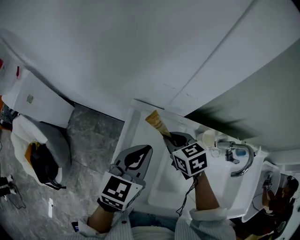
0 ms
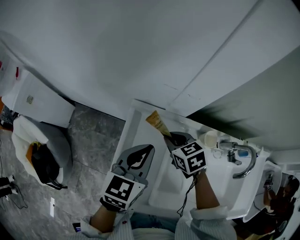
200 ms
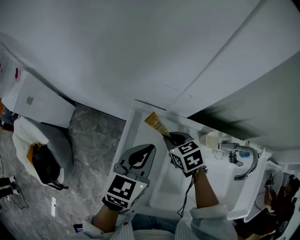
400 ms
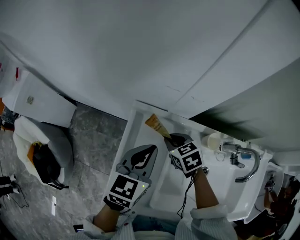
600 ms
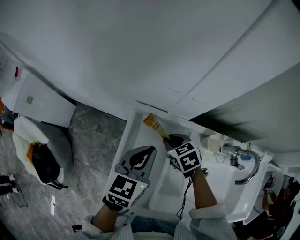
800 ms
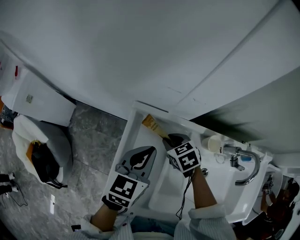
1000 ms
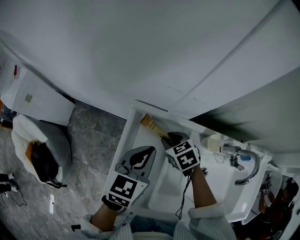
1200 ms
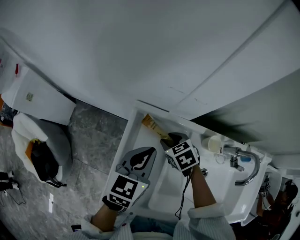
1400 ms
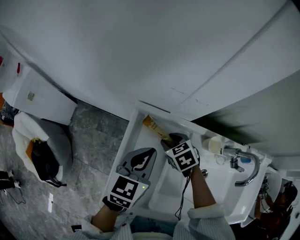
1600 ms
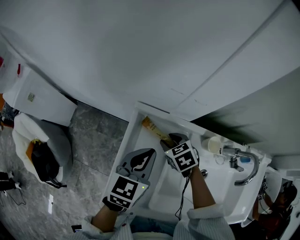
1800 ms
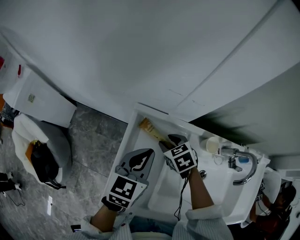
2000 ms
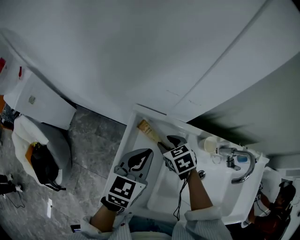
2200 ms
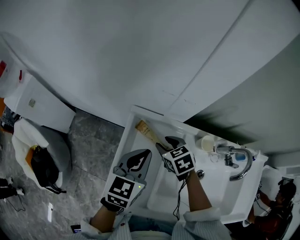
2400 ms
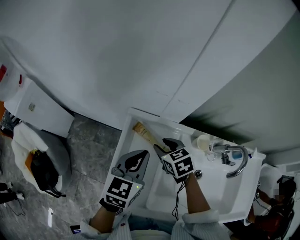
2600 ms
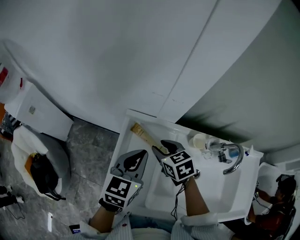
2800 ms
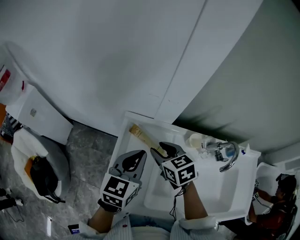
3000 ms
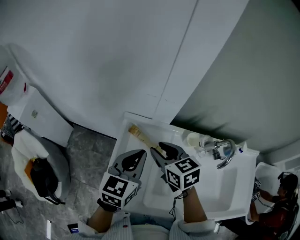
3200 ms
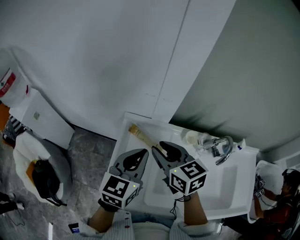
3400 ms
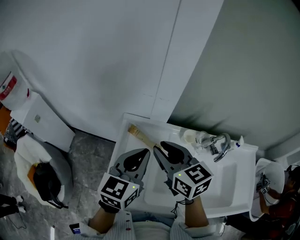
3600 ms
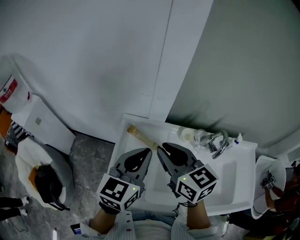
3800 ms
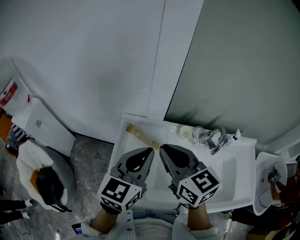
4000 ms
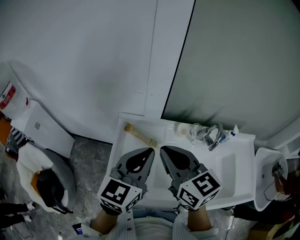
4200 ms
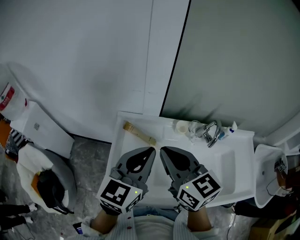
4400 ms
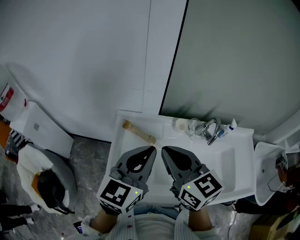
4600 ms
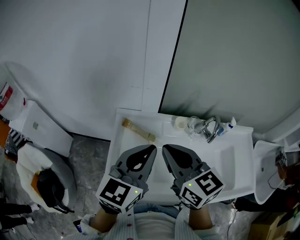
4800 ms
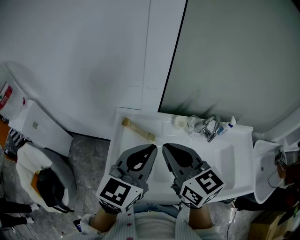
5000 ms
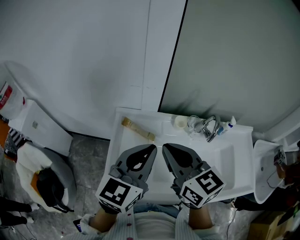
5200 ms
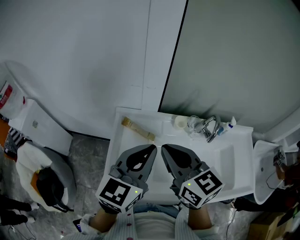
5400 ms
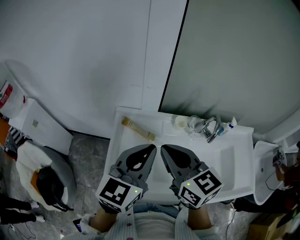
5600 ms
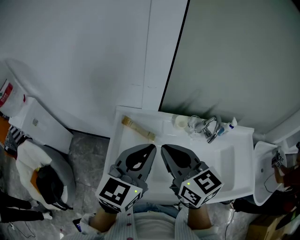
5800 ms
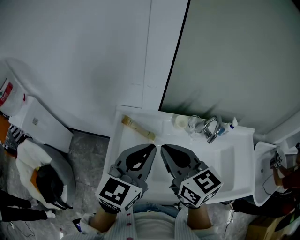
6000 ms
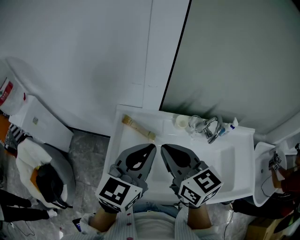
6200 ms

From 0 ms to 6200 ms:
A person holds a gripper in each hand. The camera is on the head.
From 0 ms to 1600 ms: The left gripper shifts by roughly 5 cm, while the right gripper travels downward by approximately 10 cm, and opens its fingers.
From 1600 ms to 3200 ms: The right gripper travels upward by some 20 cm, and rotates about 30 degrees. Meanwhile the left gripper is displaced upward by some 10 cm.
From 3200 ms to 4600 ms: The right gripper moves upward and backward, some 20 cm, changes its angle by approximately 20 degrees, and closes up; the left gripper travels upward, backward and to the right by approximately 15 cm.
From 4600 ms to 6200 ms: The grippers stay close to where they were, moving slightly.

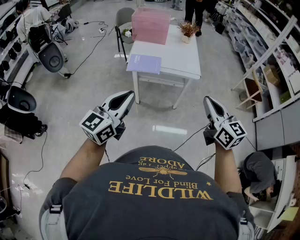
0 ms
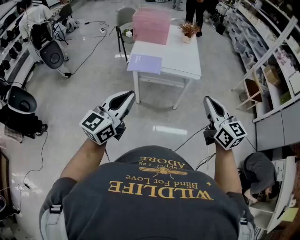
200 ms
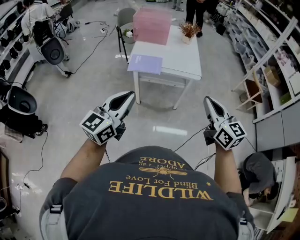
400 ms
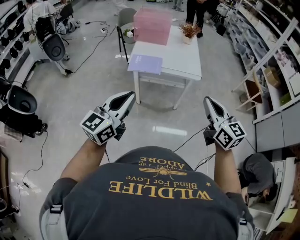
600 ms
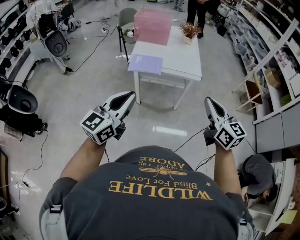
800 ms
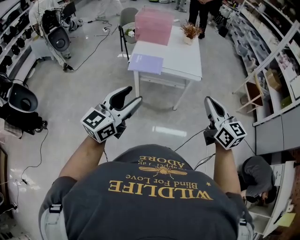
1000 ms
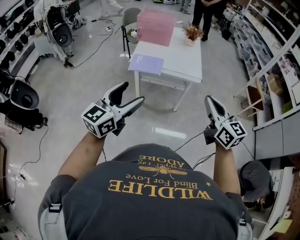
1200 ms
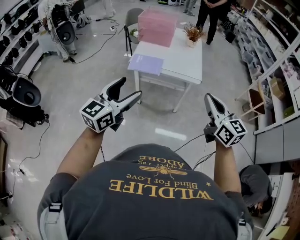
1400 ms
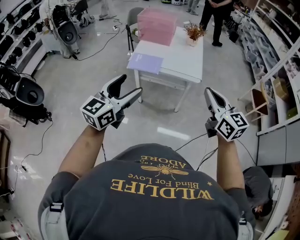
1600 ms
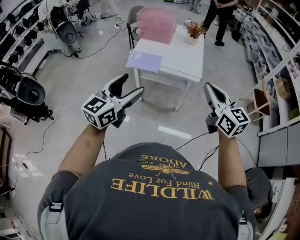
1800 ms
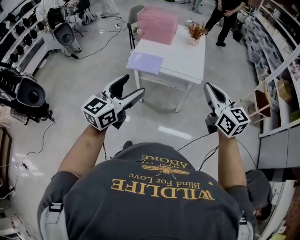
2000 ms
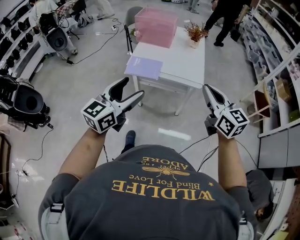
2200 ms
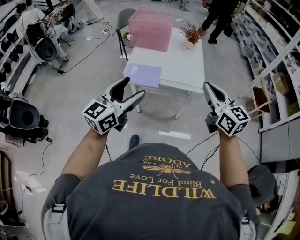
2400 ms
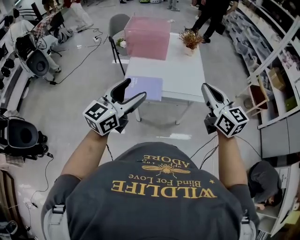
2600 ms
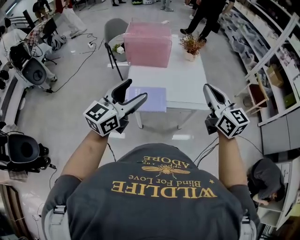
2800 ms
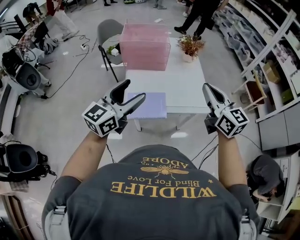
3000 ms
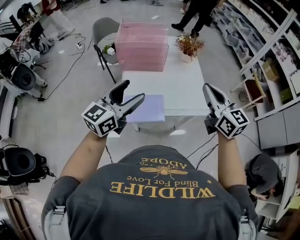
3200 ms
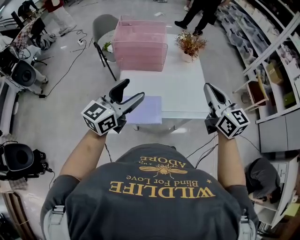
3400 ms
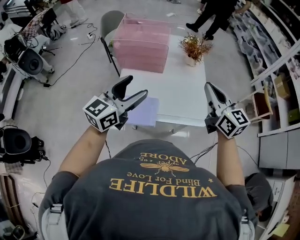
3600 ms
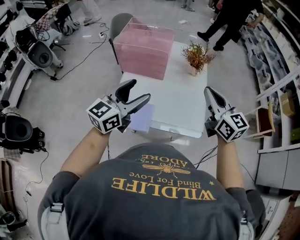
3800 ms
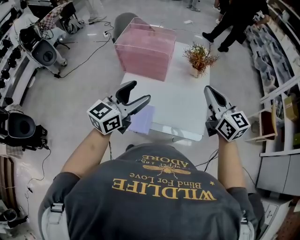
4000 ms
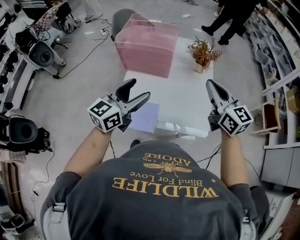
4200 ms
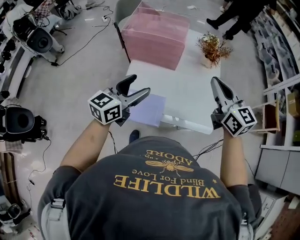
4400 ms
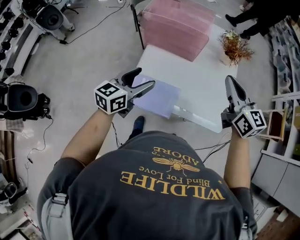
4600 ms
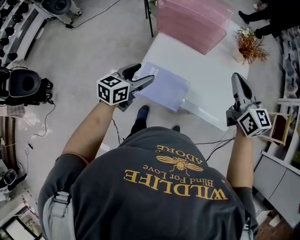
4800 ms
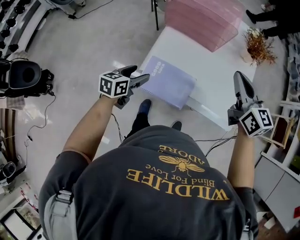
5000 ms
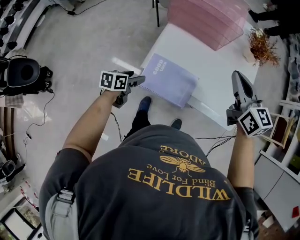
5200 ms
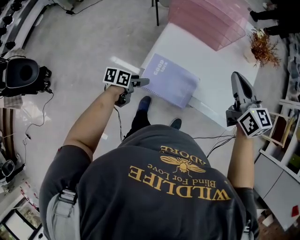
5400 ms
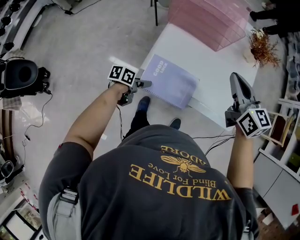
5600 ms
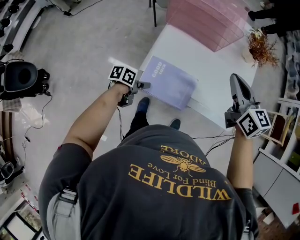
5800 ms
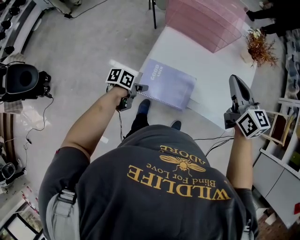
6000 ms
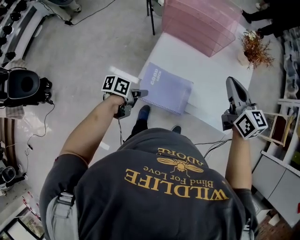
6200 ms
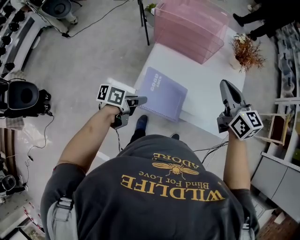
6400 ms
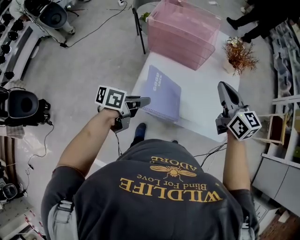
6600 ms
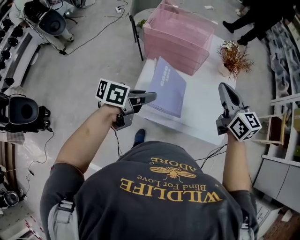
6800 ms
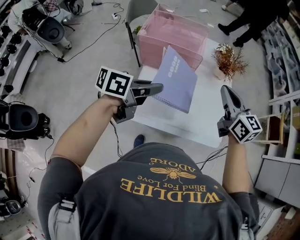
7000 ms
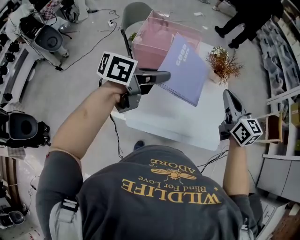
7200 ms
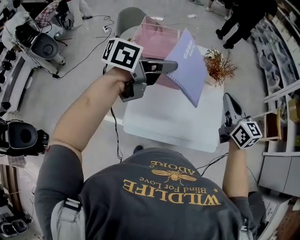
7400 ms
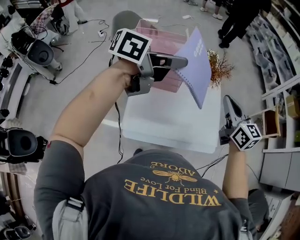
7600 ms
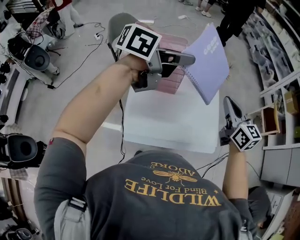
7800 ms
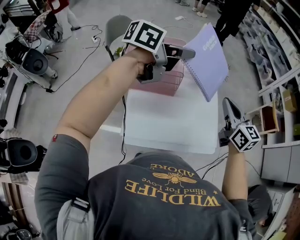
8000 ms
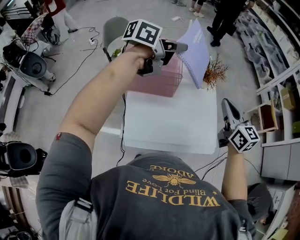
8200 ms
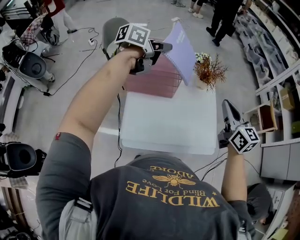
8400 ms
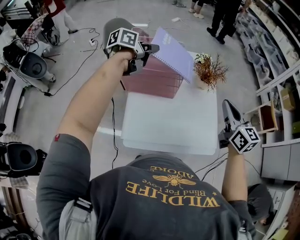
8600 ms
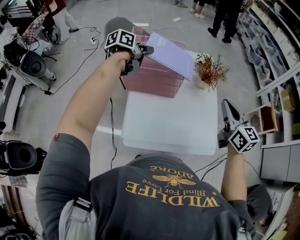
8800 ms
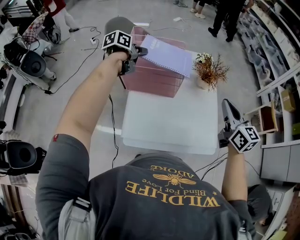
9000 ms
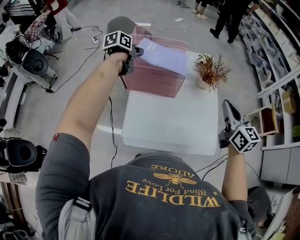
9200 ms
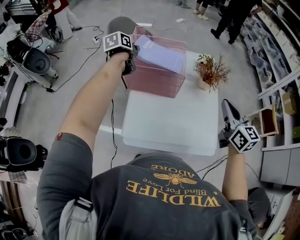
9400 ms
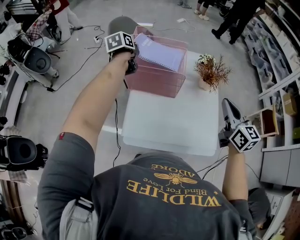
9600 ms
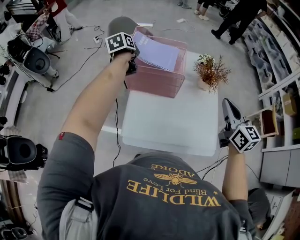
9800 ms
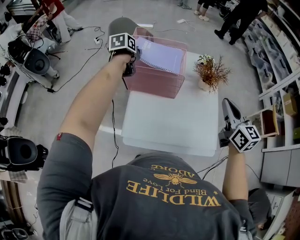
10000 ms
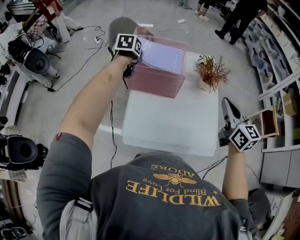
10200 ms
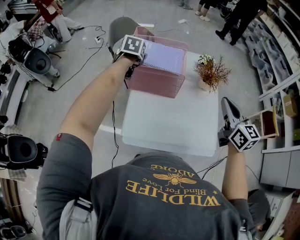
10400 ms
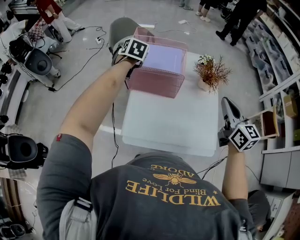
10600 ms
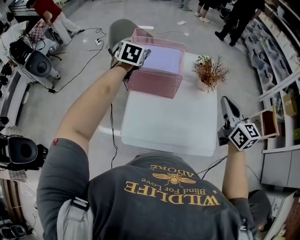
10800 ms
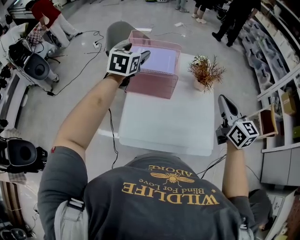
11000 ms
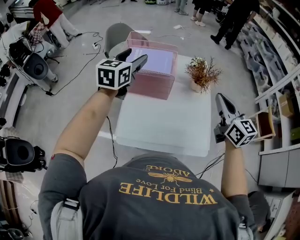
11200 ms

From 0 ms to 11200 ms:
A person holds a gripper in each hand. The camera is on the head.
From 0 ms to 1600 ms: Both grippers travel together to the right, roughly 5 cm. The left gripper opens.
From 1600 ms to 3200 ms: The pair of grippers is taken forward, some 40 cm. The left gripper rotates about 20 degrees.
From 3200 ms to 4800 ms: The right gripper travels forward and downward by about 20 cm, and rotates approximately 20 degrees. The left gripper travels downward and forward by some 25 cm, and swivels roughly 30 degrees.
From 4800 ms to 6400 ms: The left gripper goes downward and returns, some 20 cm each way, rotates approximately 40 degrees, and closes its fingers.
From 6400 ms to 8000 ms: The right gripper travels to the right, forward and upward by some 15 cm, and rotates approximately 20 degrees. The left gripper shifts about 50 cm upward and forward, and changes its angle by some 50 degrees.
From 8000 ms to 9600 ms: The left gripper changes place by about 35 cm, and swivels some 60 degrees.
From 9600 ms to 11200 ms: The left gripper moves backward, upward and to the right, about 20 cm, turns by some 40 degrees, and opens.

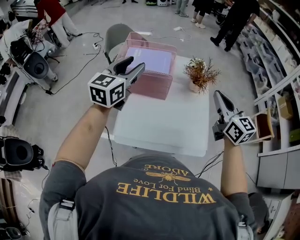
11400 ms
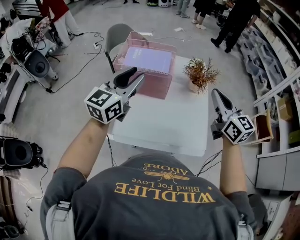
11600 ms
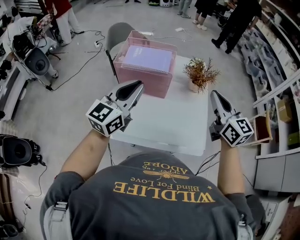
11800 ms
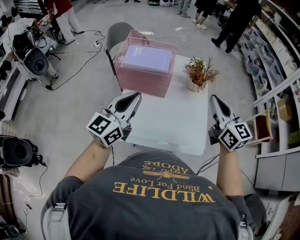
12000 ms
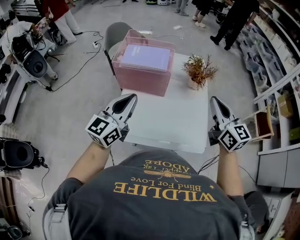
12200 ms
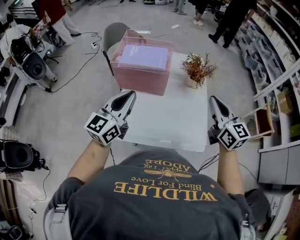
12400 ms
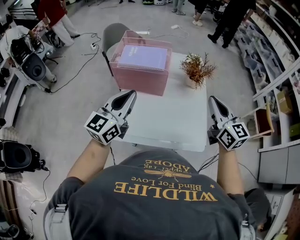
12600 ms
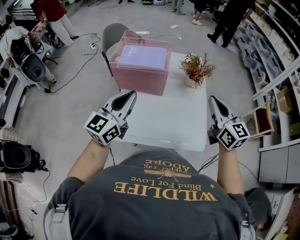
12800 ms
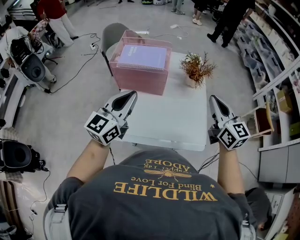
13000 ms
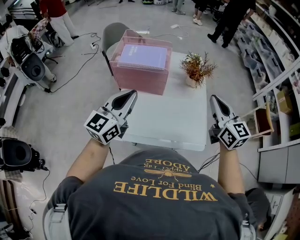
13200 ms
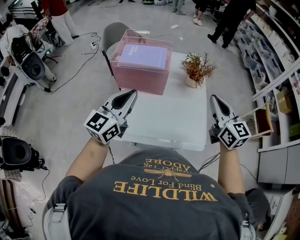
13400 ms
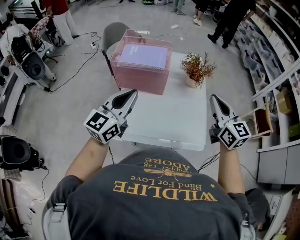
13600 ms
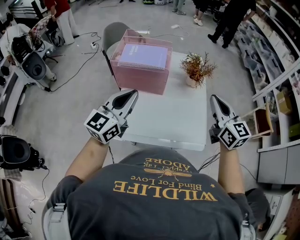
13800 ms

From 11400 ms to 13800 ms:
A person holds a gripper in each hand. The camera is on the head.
From 11400 ms to 12600 ms: The right gripper ends up roughly 5 cm from where it was, while the left gripper goes approximately 10 cm backward, and closes up.
From 12600 ms to 13800 ms: Both grippers stay put.

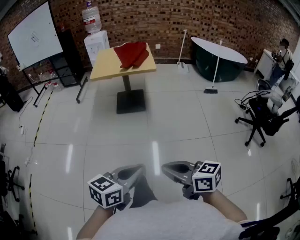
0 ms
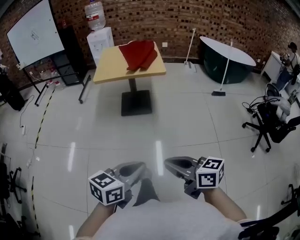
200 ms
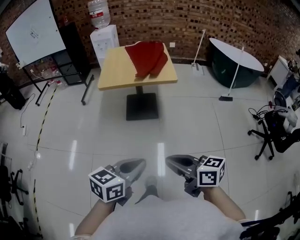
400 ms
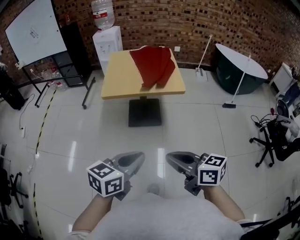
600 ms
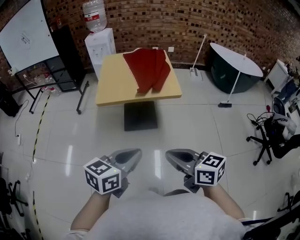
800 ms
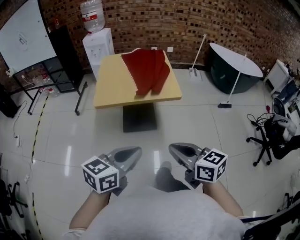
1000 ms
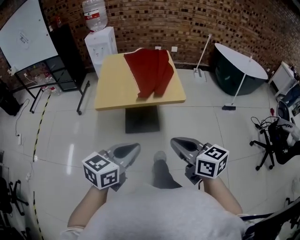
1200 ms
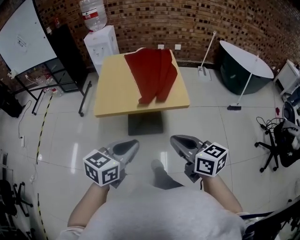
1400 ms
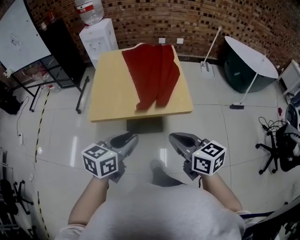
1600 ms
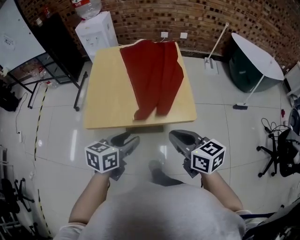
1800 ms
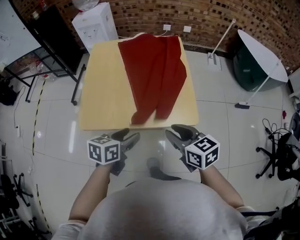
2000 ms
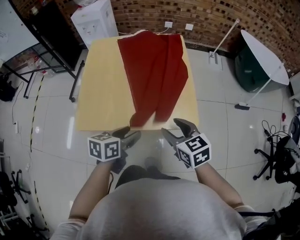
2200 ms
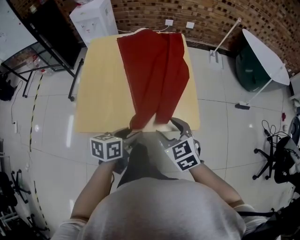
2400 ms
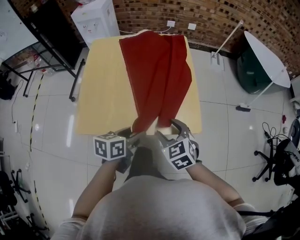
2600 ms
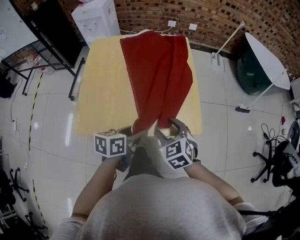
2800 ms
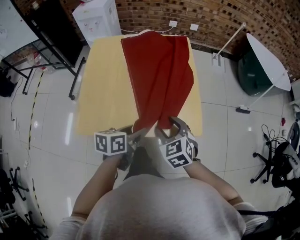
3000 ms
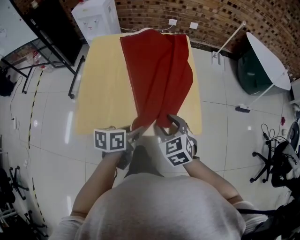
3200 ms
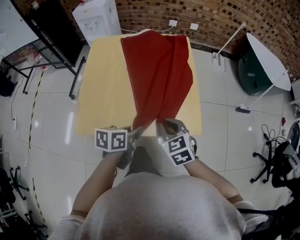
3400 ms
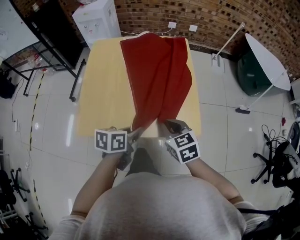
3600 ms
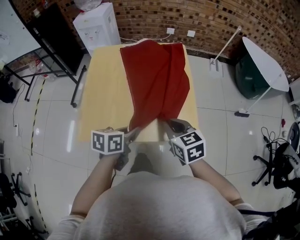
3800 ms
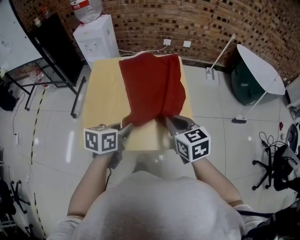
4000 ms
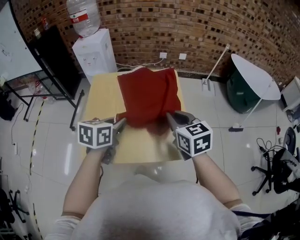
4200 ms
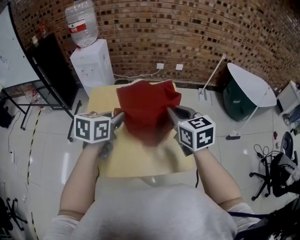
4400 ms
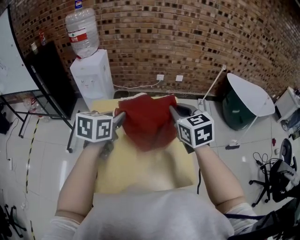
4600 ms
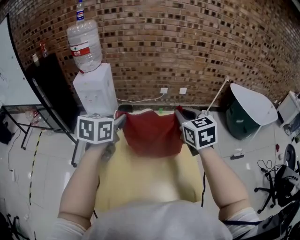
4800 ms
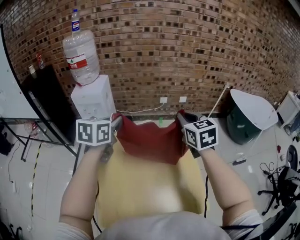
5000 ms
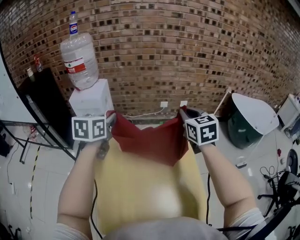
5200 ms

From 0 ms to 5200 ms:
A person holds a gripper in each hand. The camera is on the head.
From 0 ms to 1800 ms: The two grippers travel together, forward, about 80 cm. The left gripper opens.
From 1800 ms to 3400 ms: The two grippers go about 15 cm forward and downward. The right gripper changes its angle by about 30 degrees, and opens, then closes again, while the left gripper closes.
From 3400 ms to 5200 ms: Both grippers are carried forward, some 50 cm. The two grippers go approximately 30 cm upward. The right gripper turns by approximately 30 degrees; the left gripper swivels about 40 degrees.
